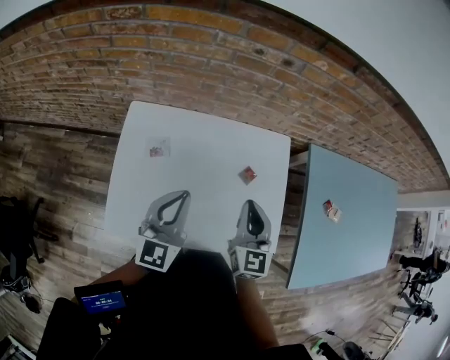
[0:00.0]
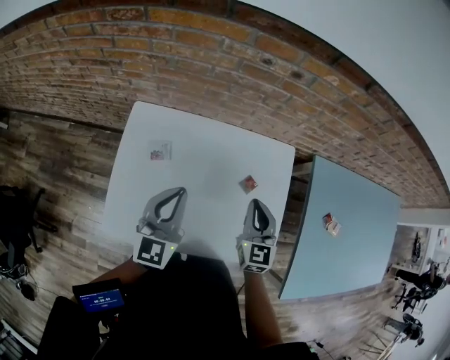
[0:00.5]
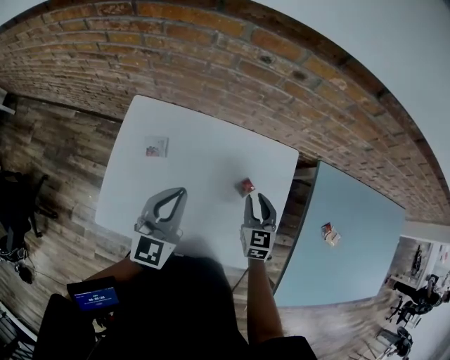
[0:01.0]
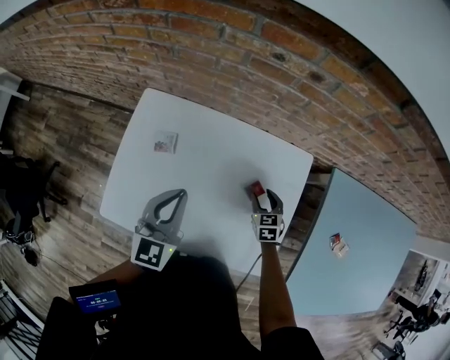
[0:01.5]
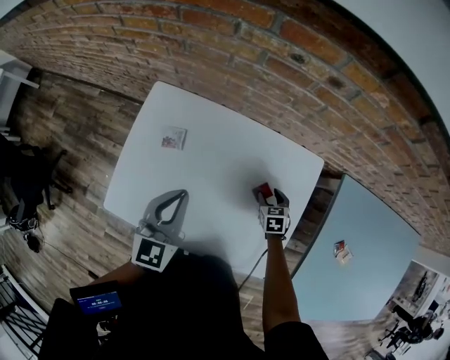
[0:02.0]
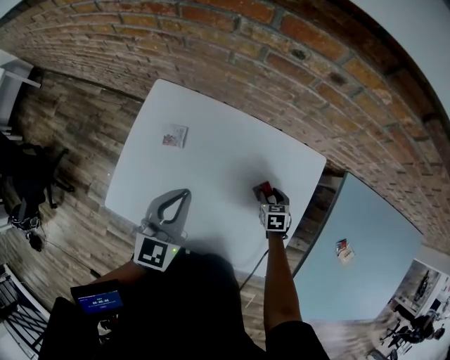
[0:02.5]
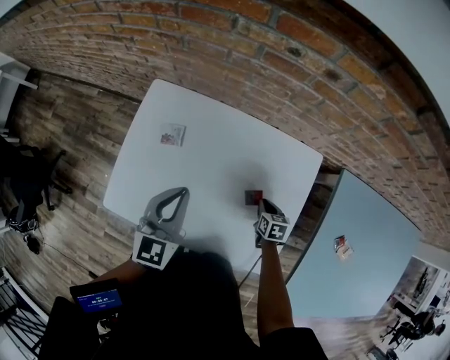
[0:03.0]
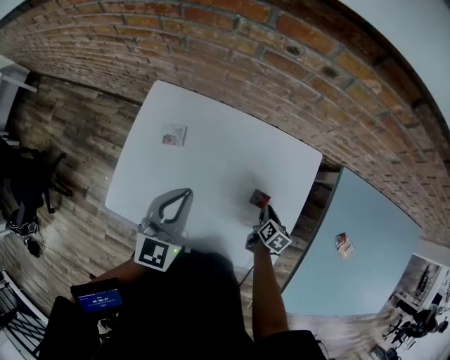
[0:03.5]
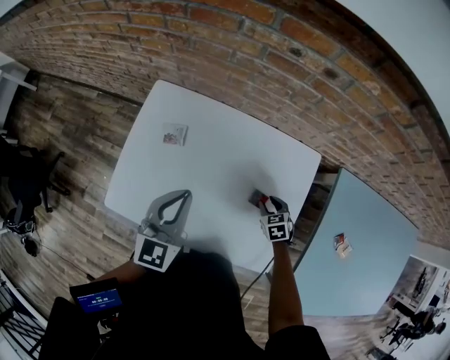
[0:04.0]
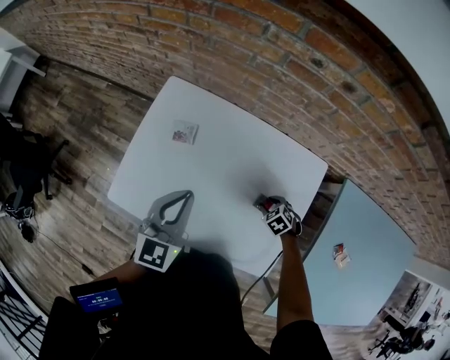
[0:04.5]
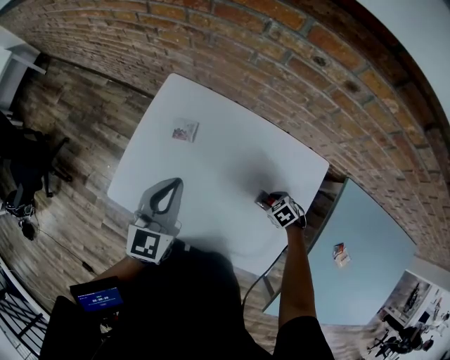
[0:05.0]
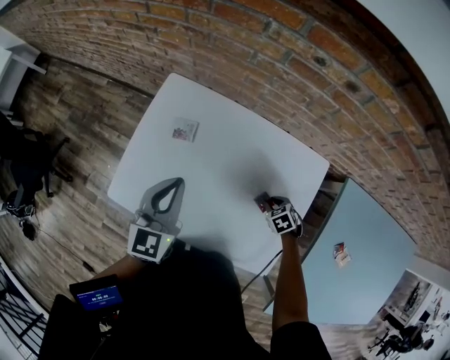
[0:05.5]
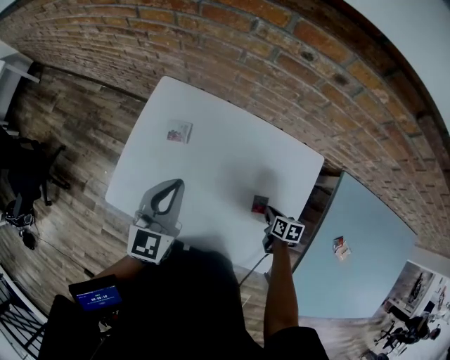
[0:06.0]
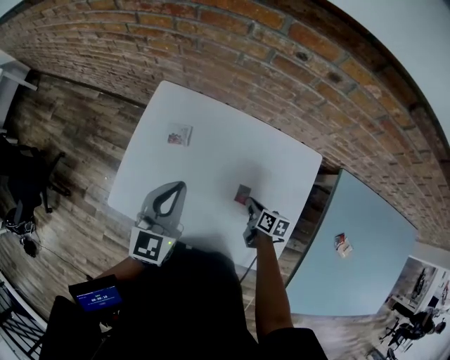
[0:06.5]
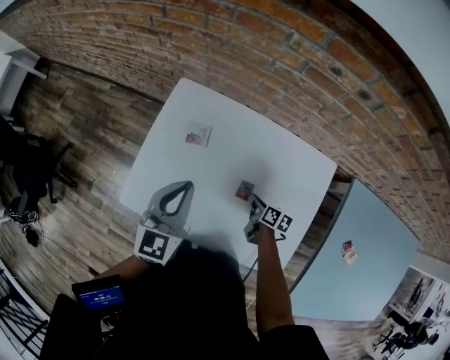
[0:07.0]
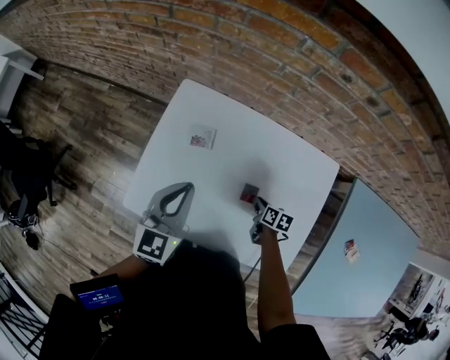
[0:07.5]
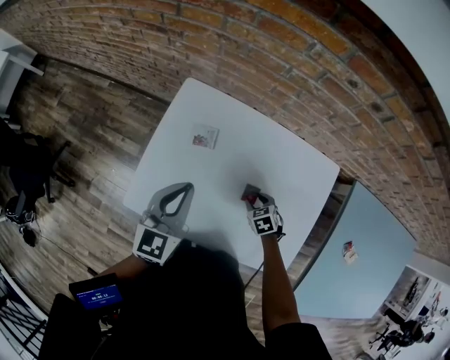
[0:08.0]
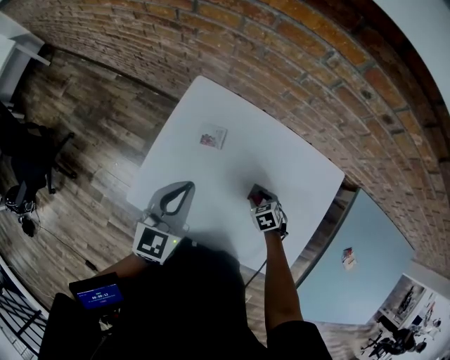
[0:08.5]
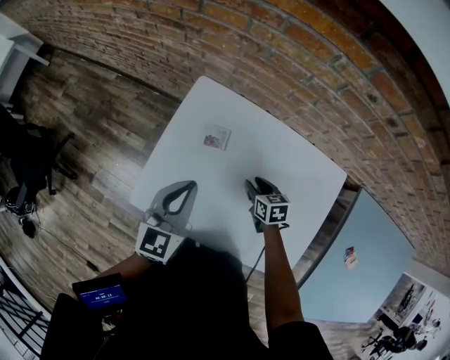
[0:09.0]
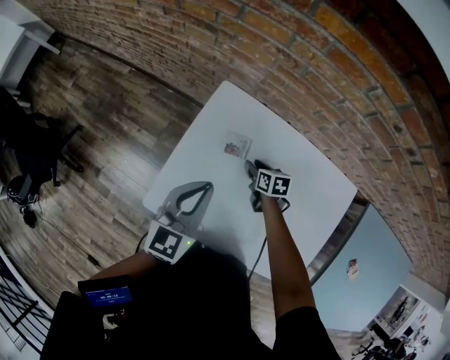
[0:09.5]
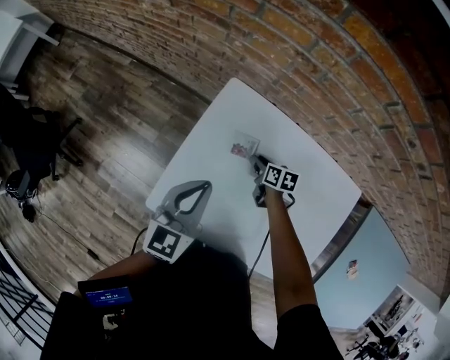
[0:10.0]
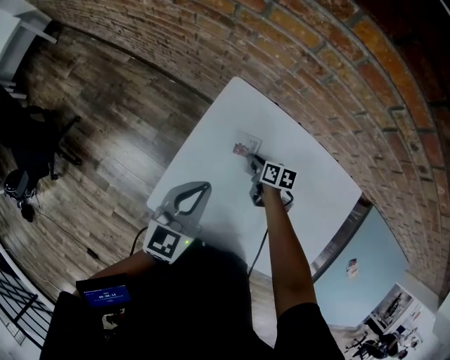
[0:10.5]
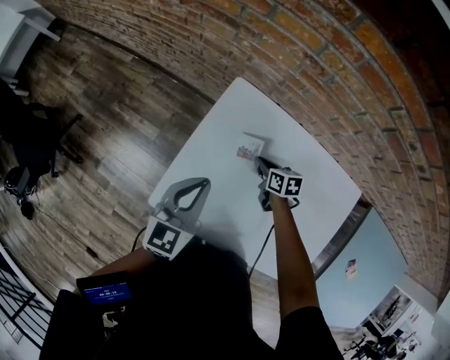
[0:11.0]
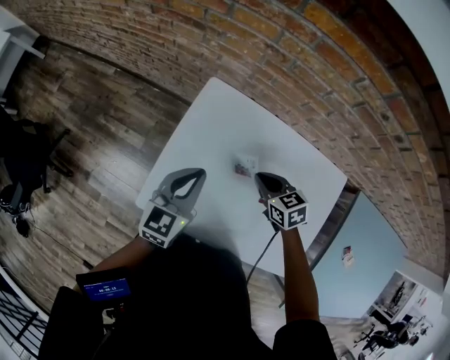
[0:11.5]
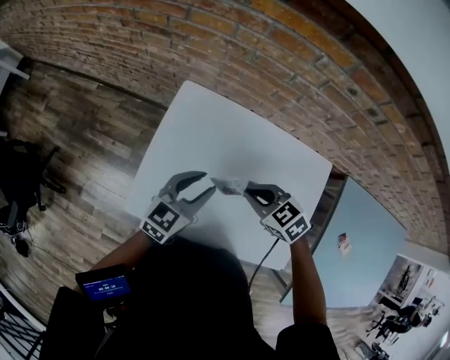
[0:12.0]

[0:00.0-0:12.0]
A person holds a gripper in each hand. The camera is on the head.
0:00.0 to 0:02.0: The left gripper shifts approximately 5 cm downward, and rotates roughly 20 degrees, while the right gripper is displaced downward and forward by approximately 35 cm, points its fingers about 50 degrees further downward, and opens up.
0:02.0 to 0:04.0: The right gripper travels backward by about 5 cm, and closes, then opens again.
0:04.0 to 0:06.0: The right gripper rotates around the line of its fingers by approximately 40 degrees, clockwise from behind, and closes its fingers.
0:06.0 to 0:08.0: The left gripper heads to the left, covering approximately 5 cm; the right gripper is displaced to the left and forward by some 15 cm, twists approximately 40 degrees counterclockwise, seen from behind, and opens.
0:08.0 to 0:10.0: The right gripper moves forward and to the left, about 25 cm, and turns by about 40 degrees; the left gripper travels to the left by some 5 cm.
0:10.0 to 0:12.0: The right gripper moves upward and backward, some 25 cm, rotates around the line of its fingers by approximately 50 degrees, counterclockwise from behind, and closes its fingers, while the left gripper heads to the right, covering some 10 cm, turns by some 20 degrees, and opens its fingers.

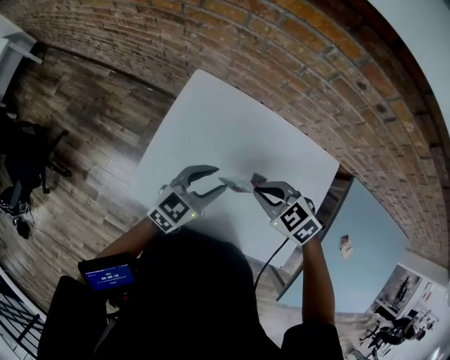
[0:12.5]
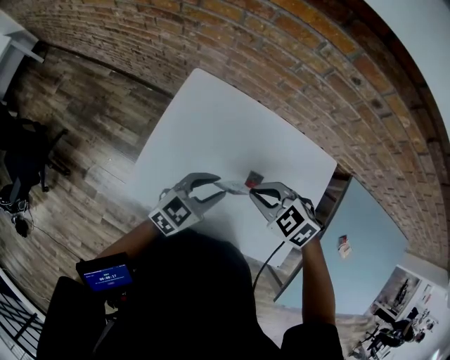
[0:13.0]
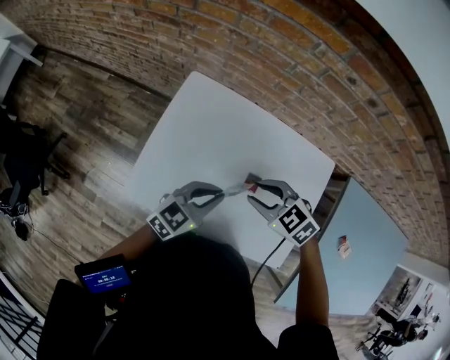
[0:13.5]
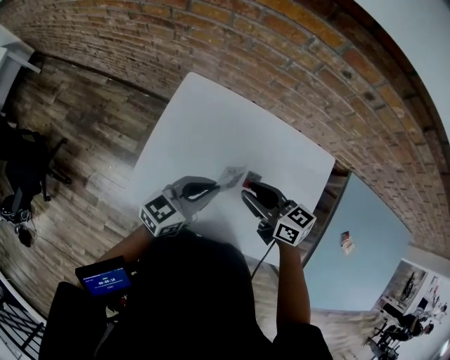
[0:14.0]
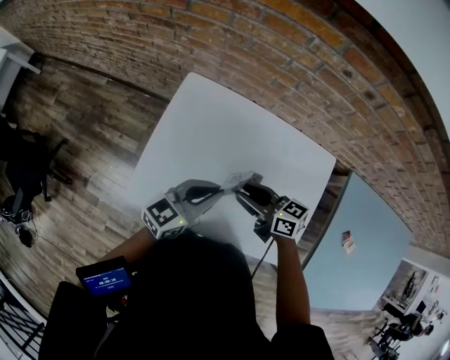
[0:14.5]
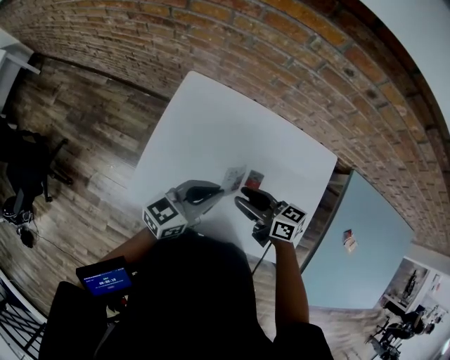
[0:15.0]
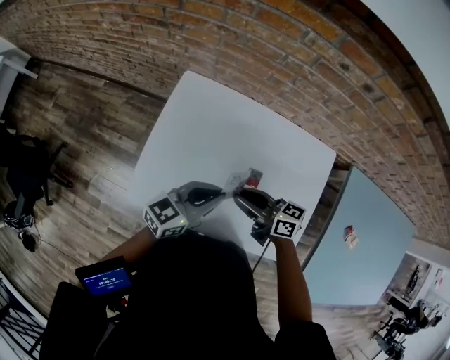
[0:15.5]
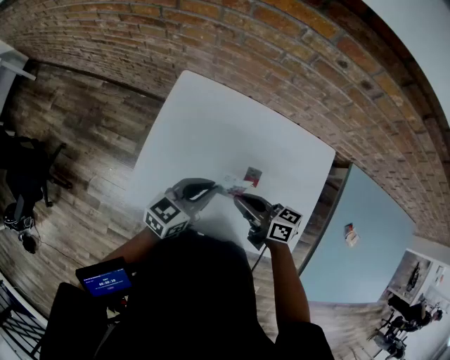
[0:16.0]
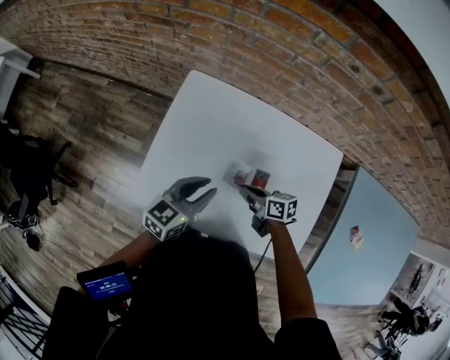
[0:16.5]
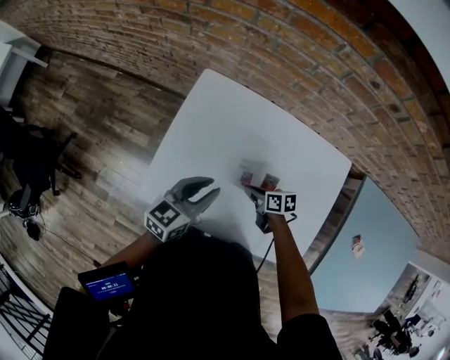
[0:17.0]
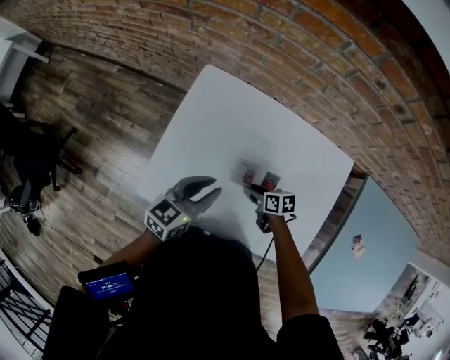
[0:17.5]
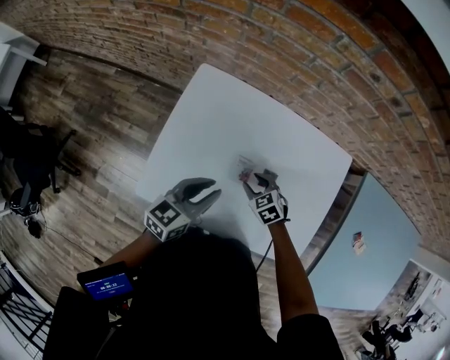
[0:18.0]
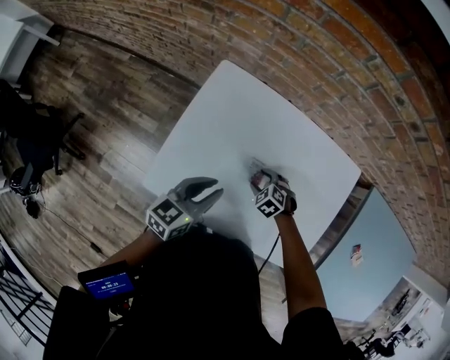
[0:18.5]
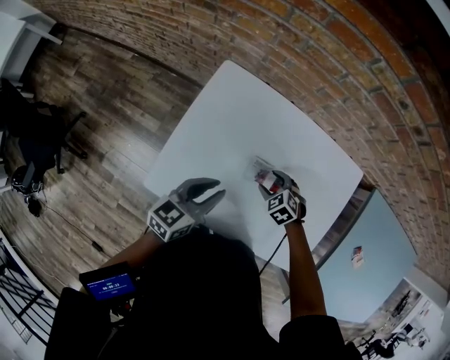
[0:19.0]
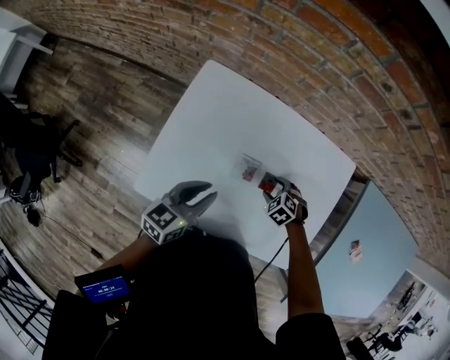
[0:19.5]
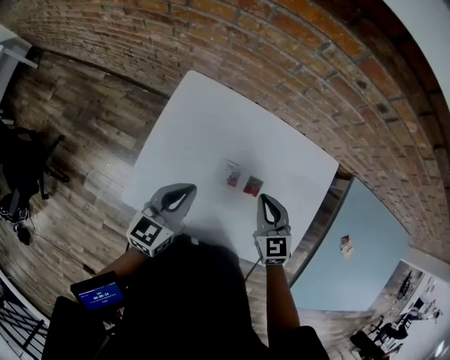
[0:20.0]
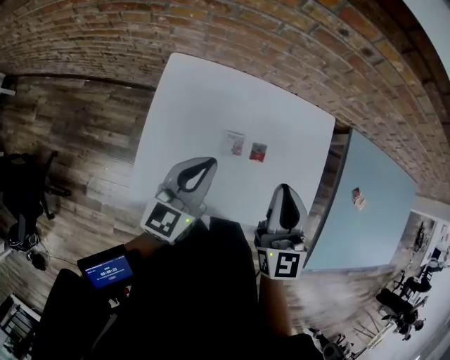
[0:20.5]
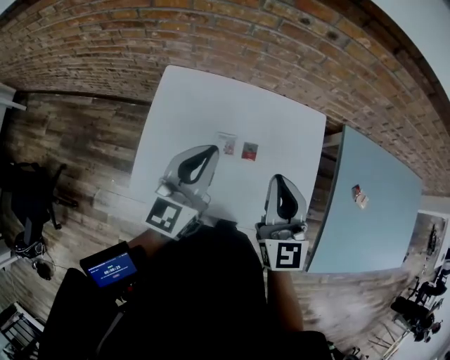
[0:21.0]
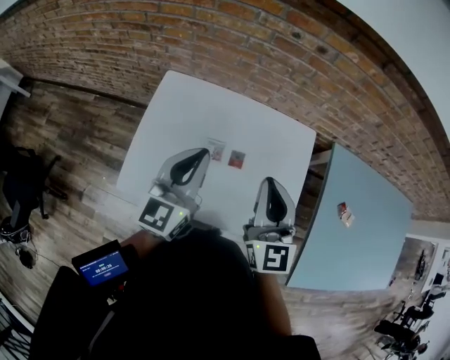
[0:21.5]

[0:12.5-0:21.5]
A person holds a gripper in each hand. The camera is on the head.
0:12.5 to 0:14.5: The right gripper tilts its fingers approximately 40 degrees upward, and opens; the left gripper closes.
0:14.5 to 0:17.0: The right gripper shifts approximately 20 cm downward, rotates roughly 40 degrees, and closes up. Meanwhile the left gripper heads to the left, covering roughly 5 cm, and opens its fingers.
0:17.0 to 0:19.5: The right gripper shifts by roughly 10 cm, rolls counterclockwise, seen from behind, by about 60 degrees, and opens.
0:19.5 to 0:21.5: The right gripper heads upward, covering about 40 cm, angles its fingers upward, by roughly 70 degrees, and closes, while the left gripper moves upward, some 20 cm, swivels about 30 degrees, and closes its fingers.

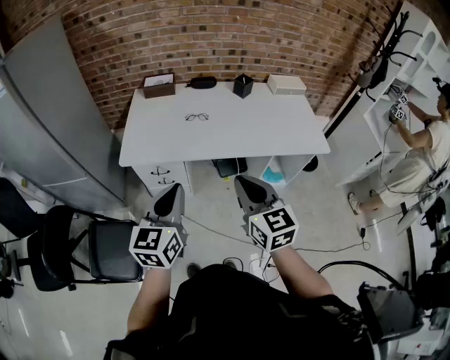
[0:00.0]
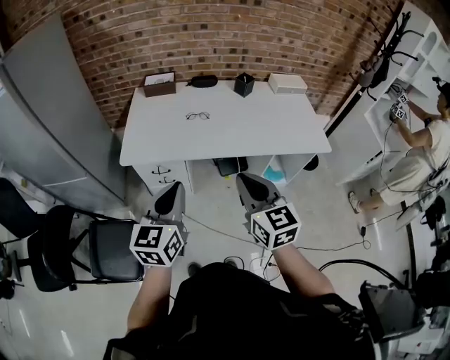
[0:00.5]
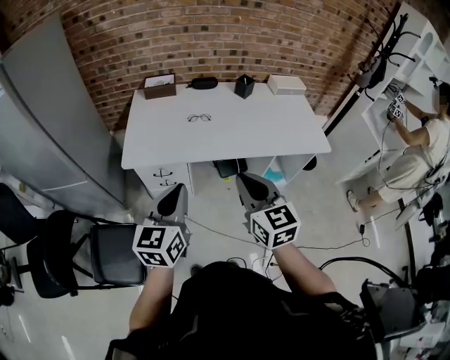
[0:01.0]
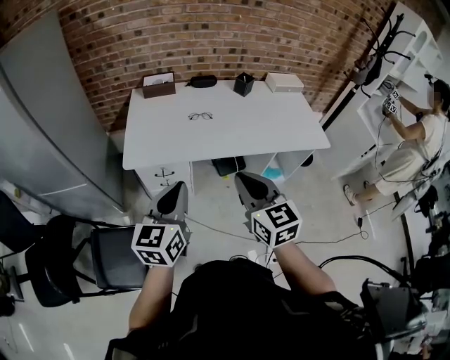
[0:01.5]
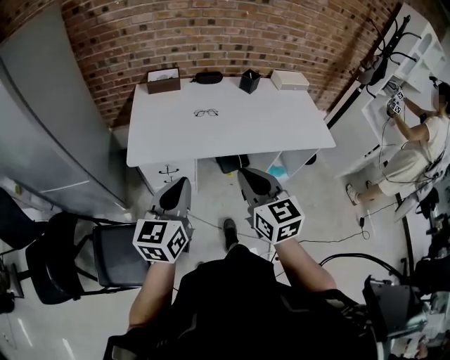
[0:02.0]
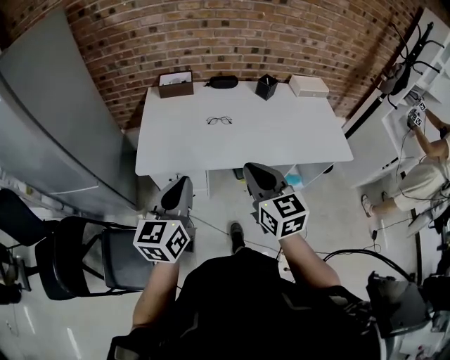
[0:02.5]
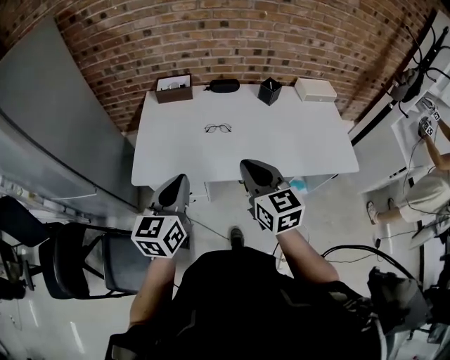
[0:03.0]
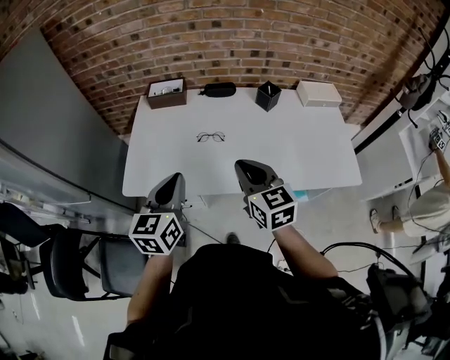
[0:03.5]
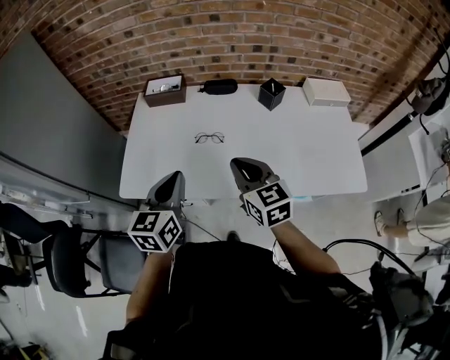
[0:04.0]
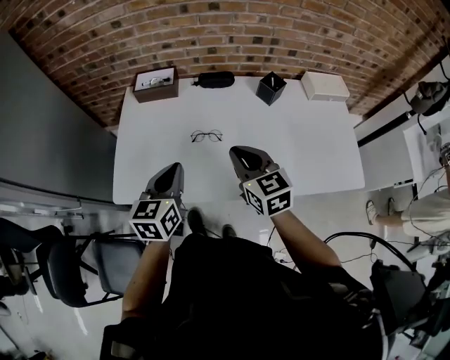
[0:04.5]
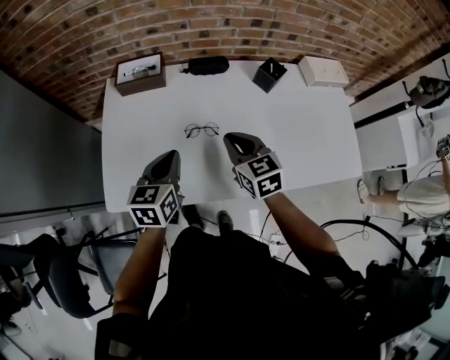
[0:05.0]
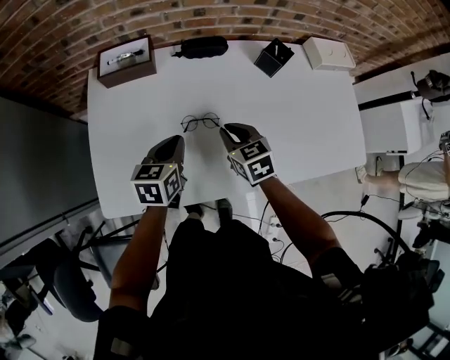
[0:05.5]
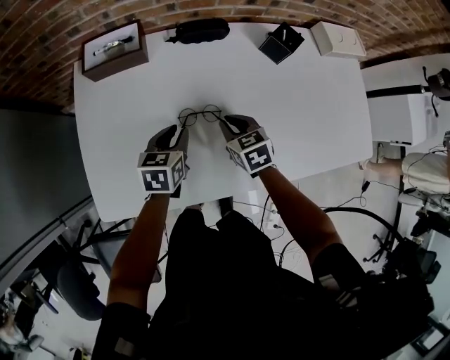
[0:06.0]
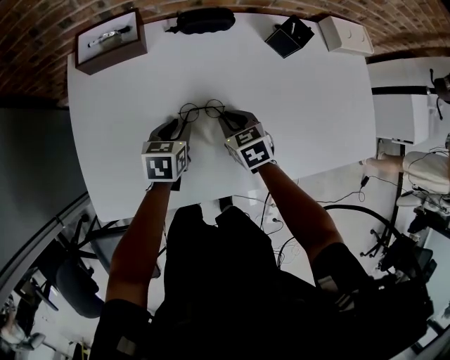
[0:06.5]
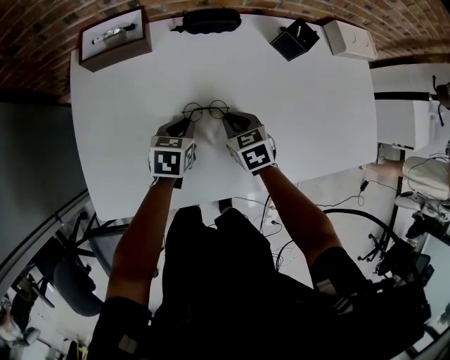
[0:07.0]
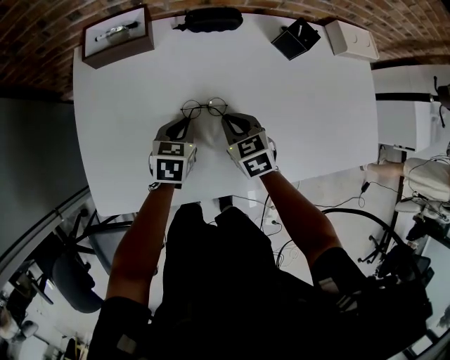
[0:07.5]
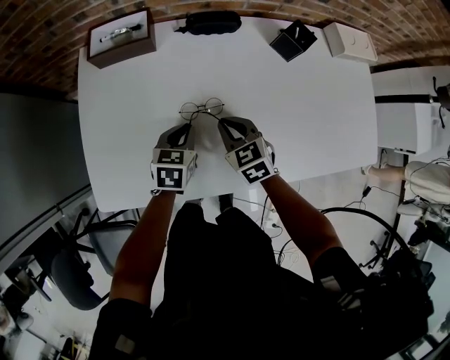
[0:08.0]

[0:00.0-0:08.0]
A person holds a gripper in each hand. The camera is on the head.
0:00.0 to 0:02.0: The grippers both shift to the left by approximately 10 cm.
0:02.0 to 0:04.0: The right gripper goes roughly 30 cm forward; the left gripper goes roughly 30 cm forward and to the right.
0:04.0 to 0:06.0: Both grippers move downward and forward, about 35 cm. The right gripper turns by roughly 30 degrees; the left gripper rotates roughly 30 degrees.
0:06.0 to 0:08.0: There are only small adjustments of the grippers.
